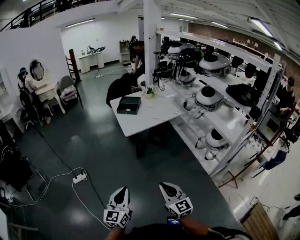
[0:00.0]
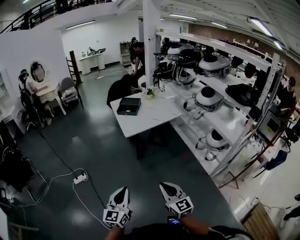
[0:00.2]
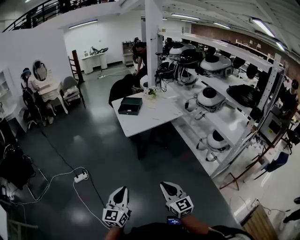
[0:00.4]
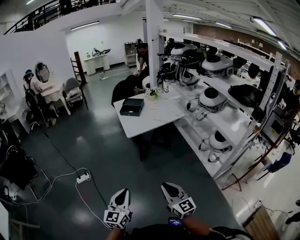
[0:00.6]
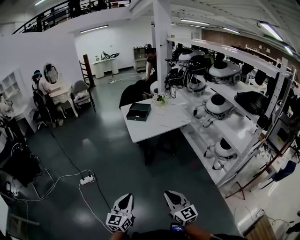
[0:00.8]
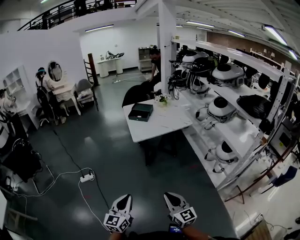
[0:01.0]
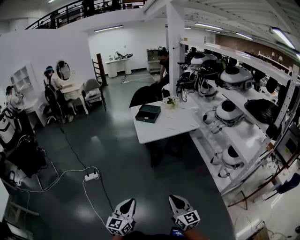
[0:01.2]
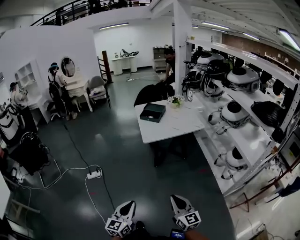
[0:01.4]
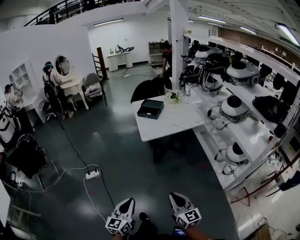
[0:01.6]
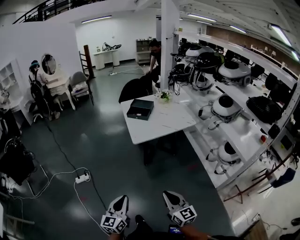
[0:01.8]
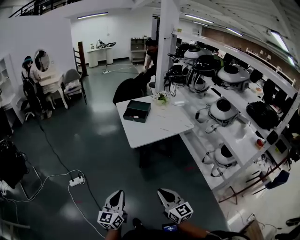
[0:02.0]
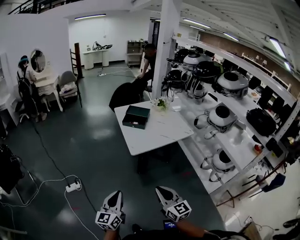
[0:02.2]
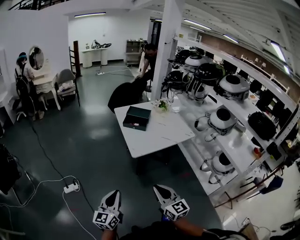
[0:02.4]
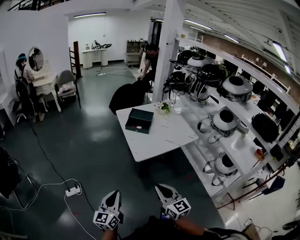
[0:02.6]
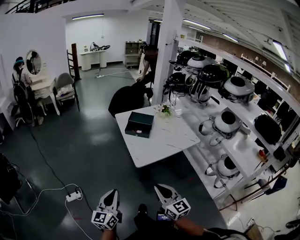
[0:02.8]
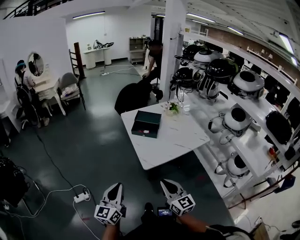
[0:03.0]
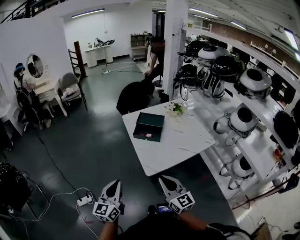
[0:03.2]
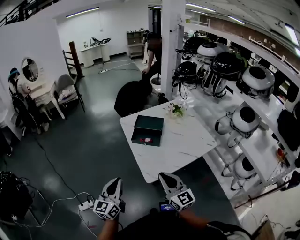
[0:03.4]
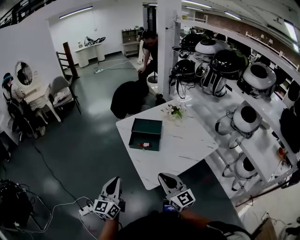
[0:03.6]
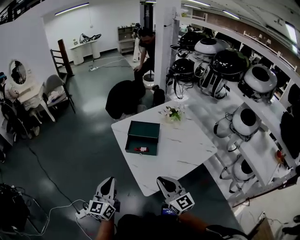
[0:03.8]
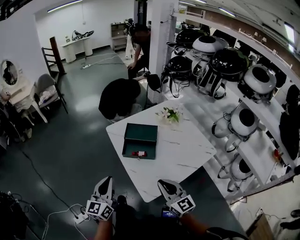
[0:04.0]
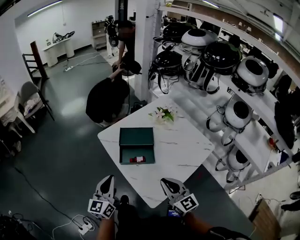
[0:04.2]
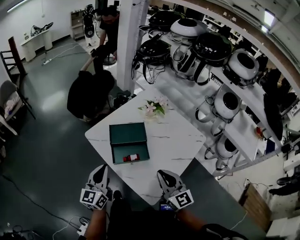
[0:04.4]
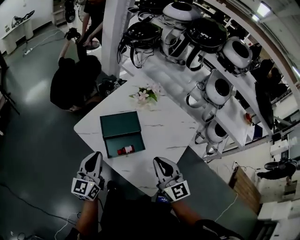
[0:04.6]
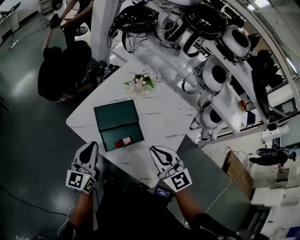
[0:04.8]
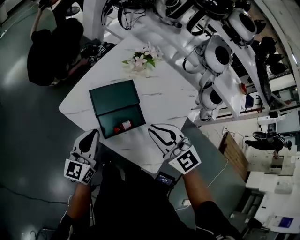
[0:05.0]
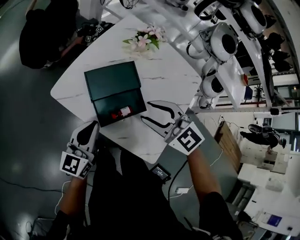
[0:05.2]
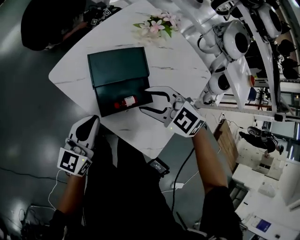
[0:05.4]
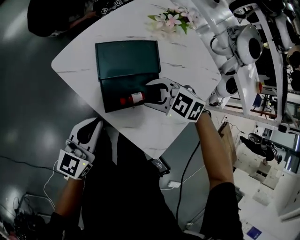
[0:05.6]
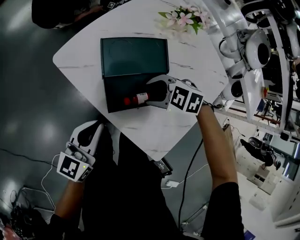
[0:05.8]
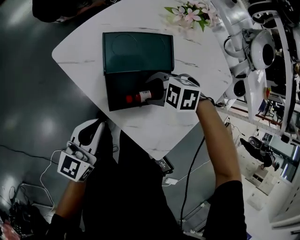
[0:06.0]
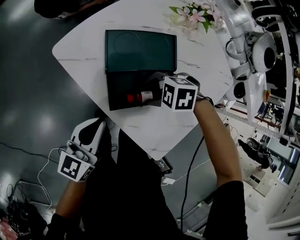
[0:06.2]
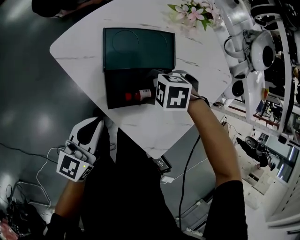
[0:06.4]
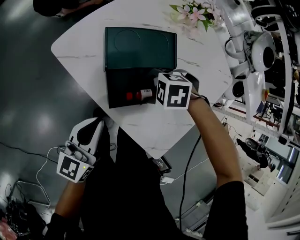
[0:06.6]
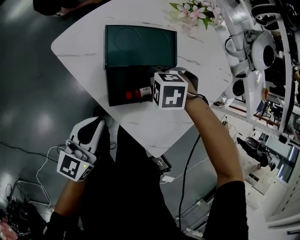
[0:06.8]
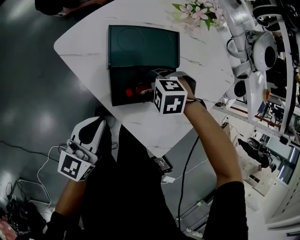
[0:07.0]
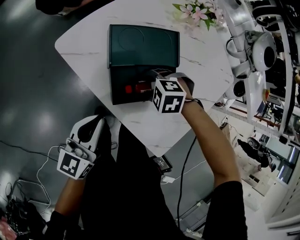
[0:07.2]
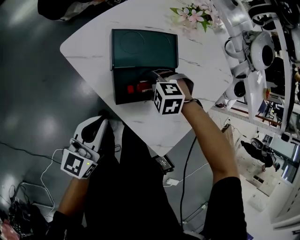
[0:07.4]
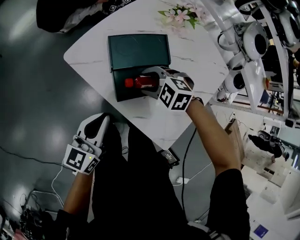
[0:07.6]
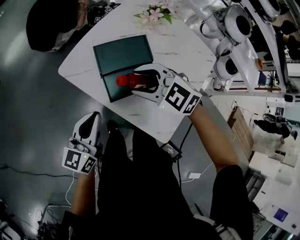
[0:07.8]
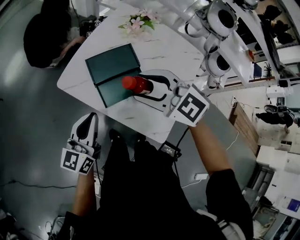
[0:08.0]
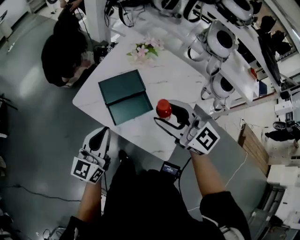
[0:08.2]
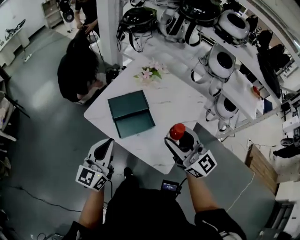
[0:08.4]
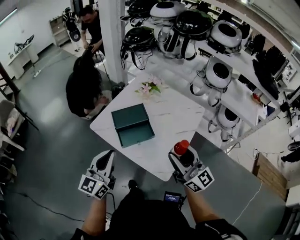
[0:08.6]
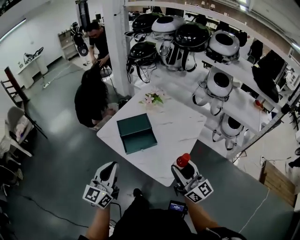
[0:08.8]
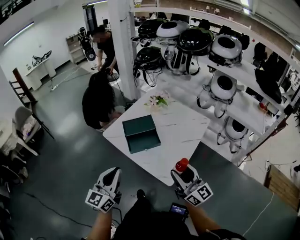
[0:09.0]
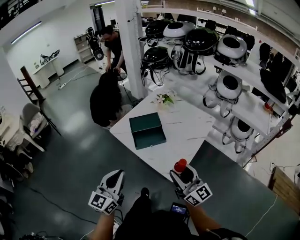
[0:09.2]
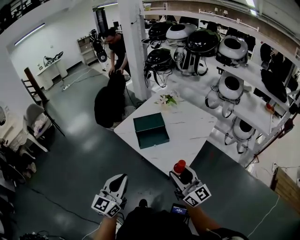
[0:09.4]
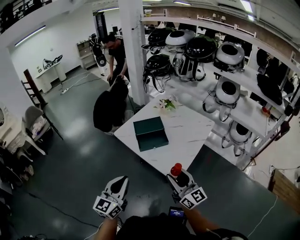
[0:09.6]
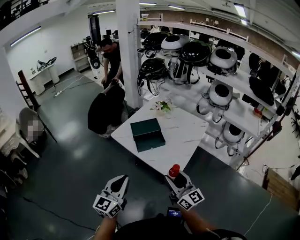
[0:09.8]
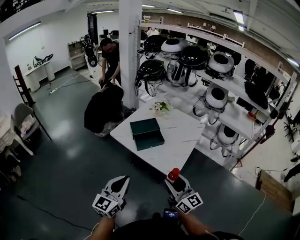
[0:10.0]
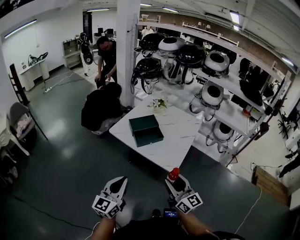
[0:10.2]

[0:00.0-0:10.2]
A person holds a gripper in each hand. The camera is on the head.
0:00.0 to 0:01.4: The left gripper ends up about 5 cm from where it was; the right gripper heads to the right, covering roughly 5 cm.
0:01.4 to 0:03.0: The pair of grippers is taken forward, approximately 40 cm.
0:03.0 to 0:04.4: Both grippers travel together forward, about 40 cm. The left gripper swivels about 20 degrees, while the right gripper changes its angle by roughly 20 degrees.
0:04.4 to 0:05.8: The left gripper is displaced downward by approximately 15 cm, and rotates roughly 20 degrees, while the right gripper moves downward, about 25 cm, tips its fingers downward by approximately 60 degrees, and opens its fingers.
0:05.8 to 0:07.2: The right gripper is displaced downward by some 5 cm, and swivels roughly 20 degrees.
0:07.2 to 0:08.8: The grippers both shift upward by roughly 30 cm. The left gripper turns by some 20 degrees. Meanwhile the right gripper tilts its fingers approximately 90 degrees upward.
0:08.8 to 0:10.2: The two grippers go about 20 cm backward and to the left.

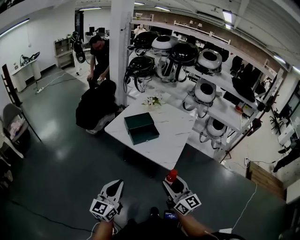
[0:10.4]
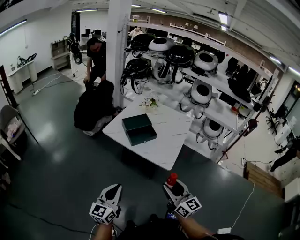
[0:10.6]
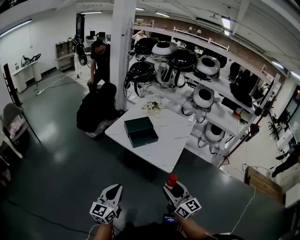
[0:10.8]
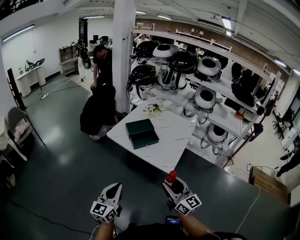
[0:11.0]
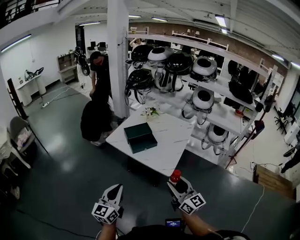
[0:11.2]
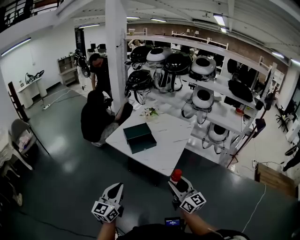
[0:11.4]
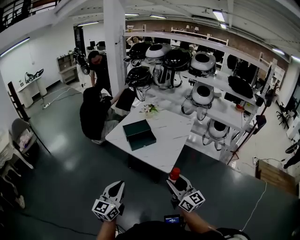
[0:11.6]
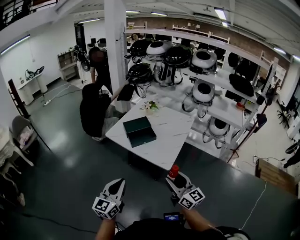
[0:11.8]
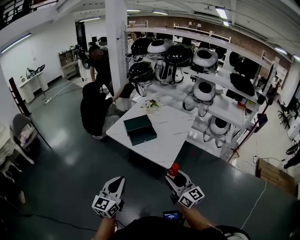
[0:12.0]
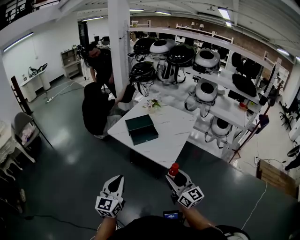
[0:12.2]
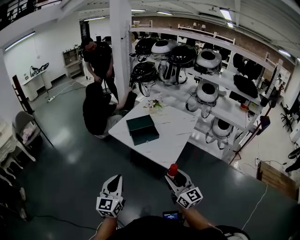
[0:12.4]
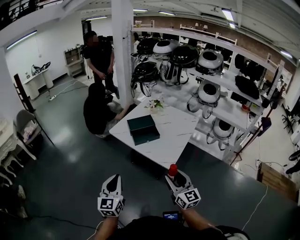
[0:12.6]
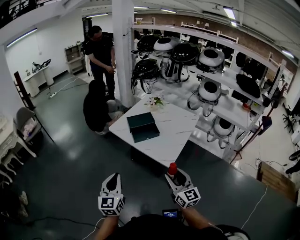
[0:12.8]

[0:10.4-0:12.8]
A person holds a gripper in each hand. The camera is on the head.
0:10.4 to 0:11.6: The two grippers go about 5 cm to the right.
0:11.6 to 0:12.8: The left gripper changes its angle by roughly 20 degrees.

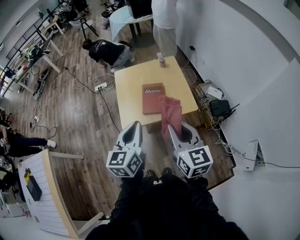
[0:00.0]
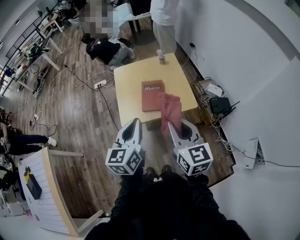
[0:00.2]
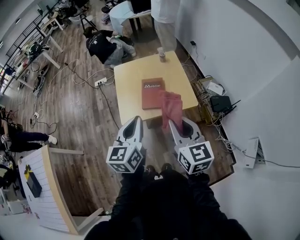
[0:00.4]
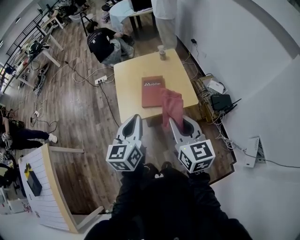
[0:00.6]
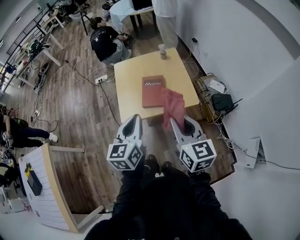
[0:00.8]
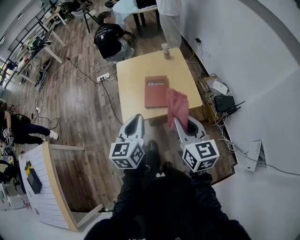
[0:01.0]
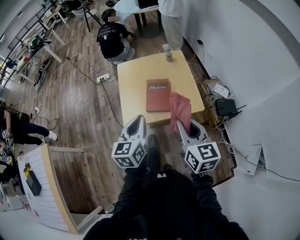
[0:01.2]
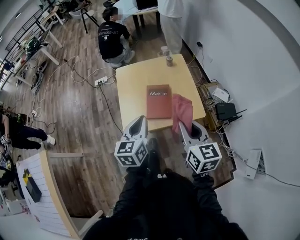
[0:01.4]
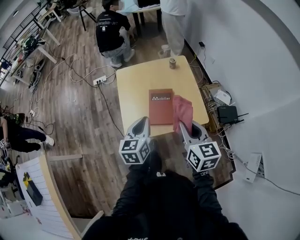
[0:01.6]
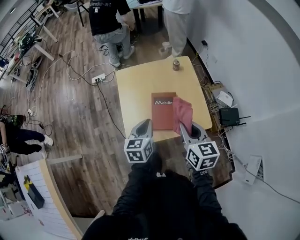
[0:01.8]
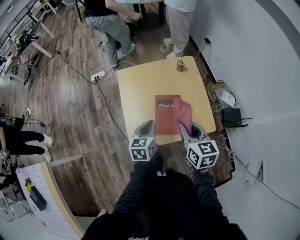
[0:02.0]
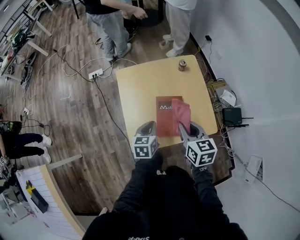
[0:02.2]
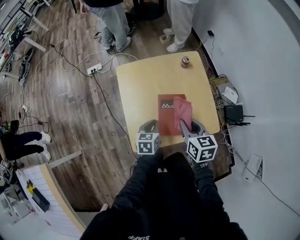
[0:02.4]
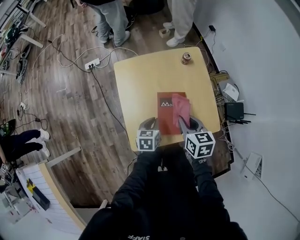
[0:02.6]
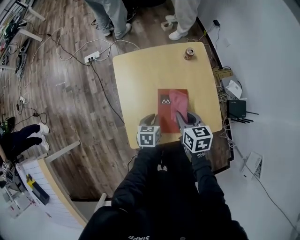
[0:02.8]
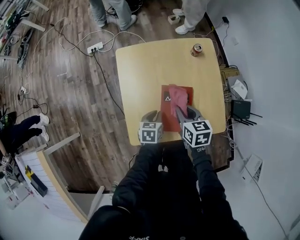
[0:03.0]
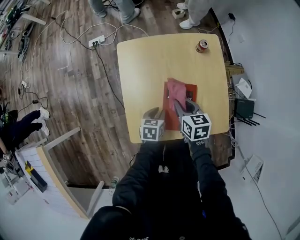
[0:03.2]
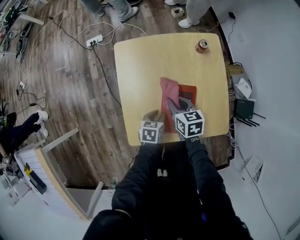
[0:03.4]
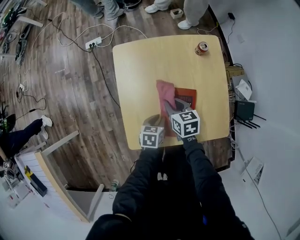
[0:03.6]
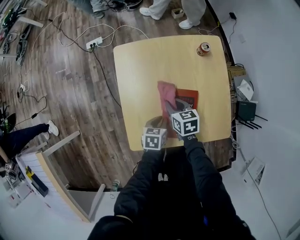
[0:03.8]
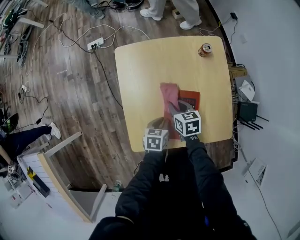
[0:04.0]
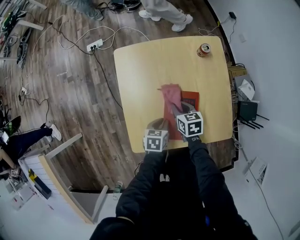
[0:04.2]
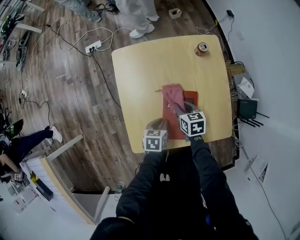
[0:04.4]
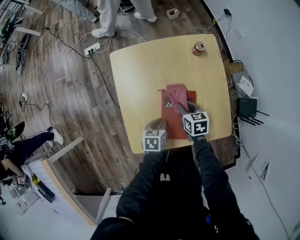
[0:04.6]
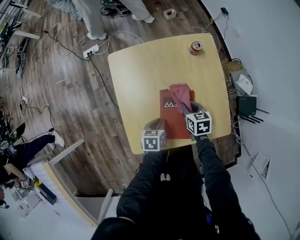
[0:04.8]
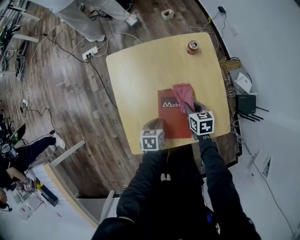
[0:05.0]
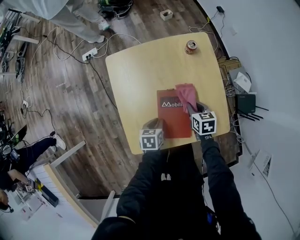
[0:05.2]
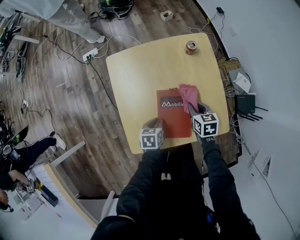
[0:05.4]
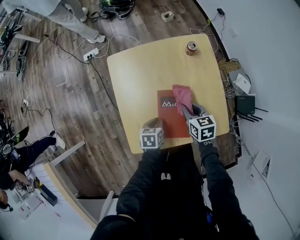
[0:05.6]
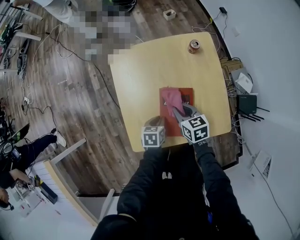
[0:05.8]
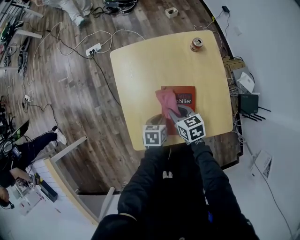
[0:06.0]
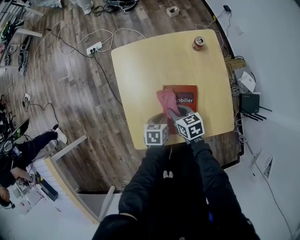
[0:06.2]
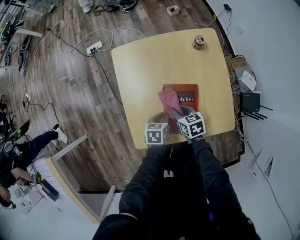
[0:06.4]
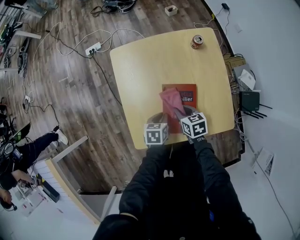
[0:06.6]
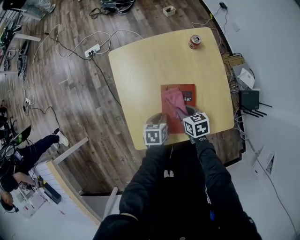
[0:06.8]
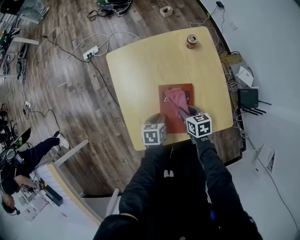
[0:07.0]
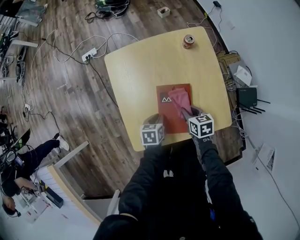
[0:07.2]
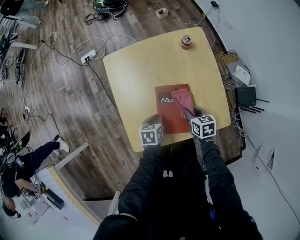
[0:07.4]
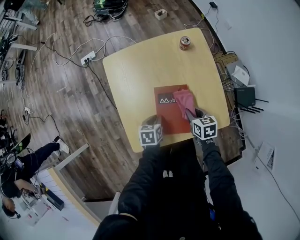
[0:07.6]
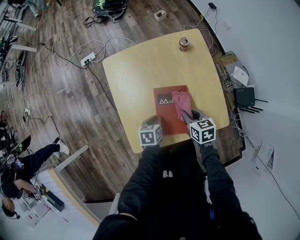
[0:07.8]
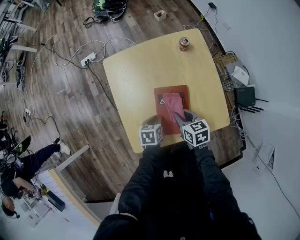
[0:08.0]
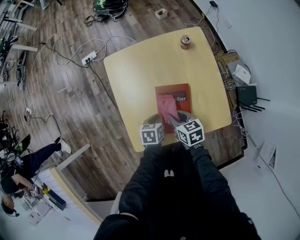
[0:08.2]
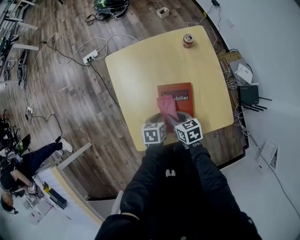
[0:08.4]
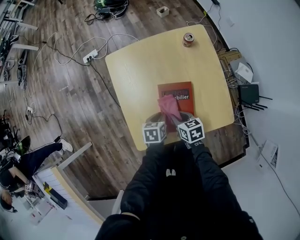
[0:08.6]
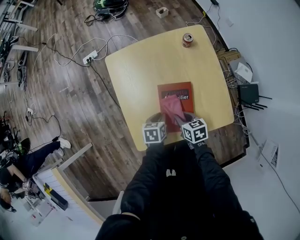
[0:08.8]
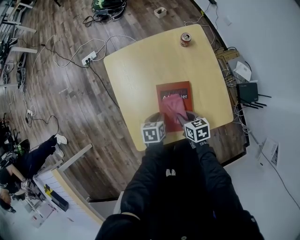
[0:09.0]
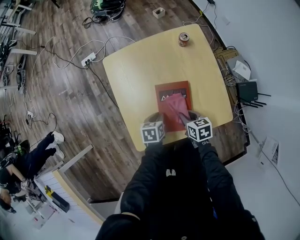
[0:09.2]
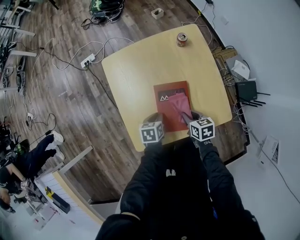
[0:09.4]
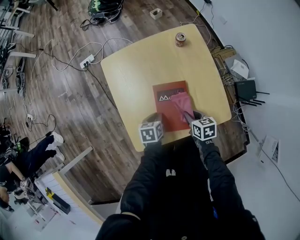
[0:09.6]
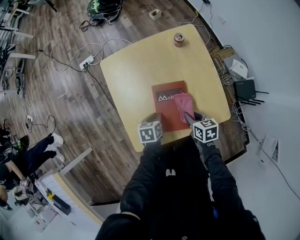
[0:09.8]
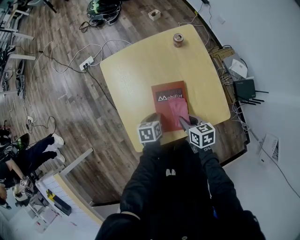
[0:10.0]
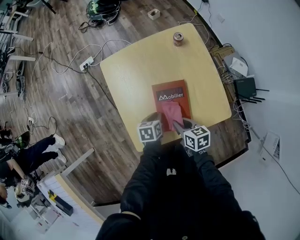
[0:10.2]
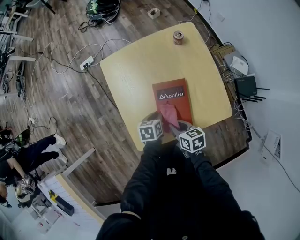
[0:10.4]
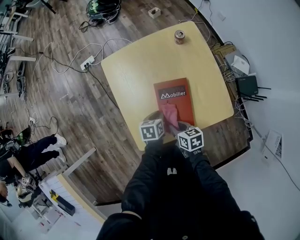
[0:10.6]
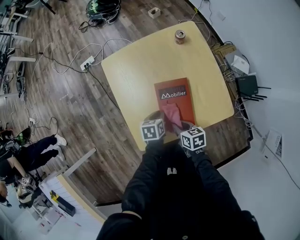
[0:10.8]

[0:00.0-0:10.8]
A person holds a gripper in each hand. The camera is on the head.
0:00.0 to 0:01.6: Both grippers move forward and downward, roughly 20 cm.
0:01.6 to 0:03.0: Both grippers travel together downward and forward, approximately 30 cm. The left gripper swivels roughly 30 degrees, while the right gripper swivels about 20 degrees.
0:03.0 to 0:04.6: The right gripper moves downward, some 15 cm.
0:04.6 to 0:06.2: The right gripper heads to the left and backward, covering about 10 cm.
0:06.2 to 0:07.8: The right gripper travels to the right by approximately 10 cm.
0:07.8 to 0:09.2: The right gripper goes to the left and returns, approximately 10 cm each way.
0:09.2 to 0:10.8: The right gripper heads backward, covering about 5 cm.
